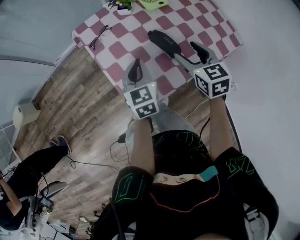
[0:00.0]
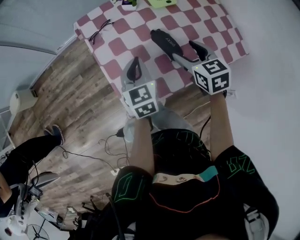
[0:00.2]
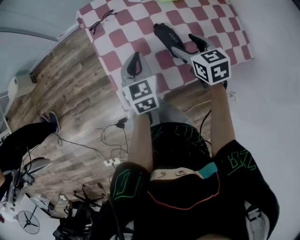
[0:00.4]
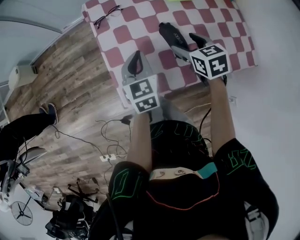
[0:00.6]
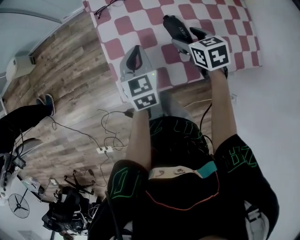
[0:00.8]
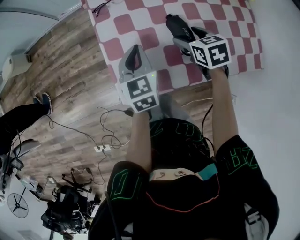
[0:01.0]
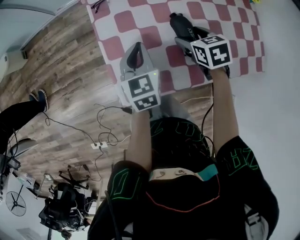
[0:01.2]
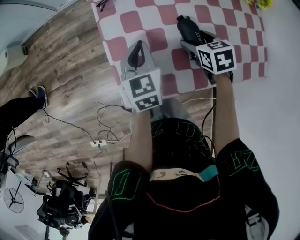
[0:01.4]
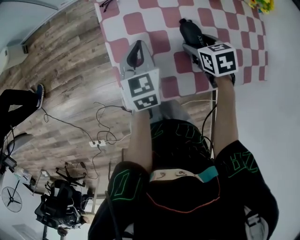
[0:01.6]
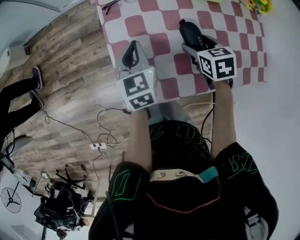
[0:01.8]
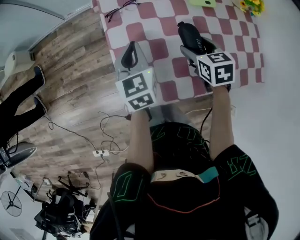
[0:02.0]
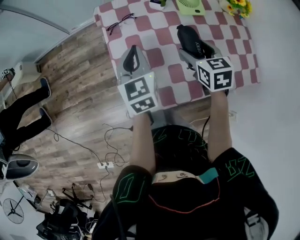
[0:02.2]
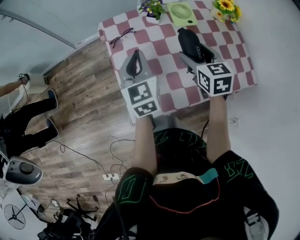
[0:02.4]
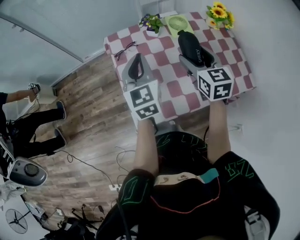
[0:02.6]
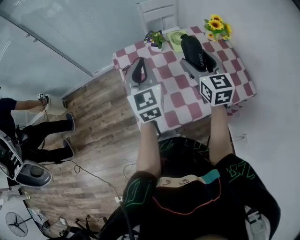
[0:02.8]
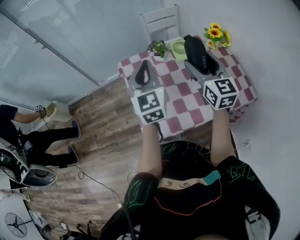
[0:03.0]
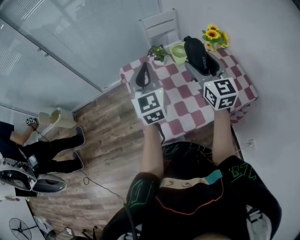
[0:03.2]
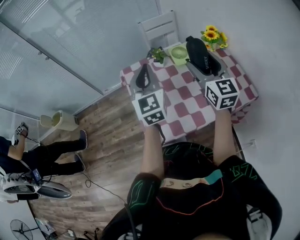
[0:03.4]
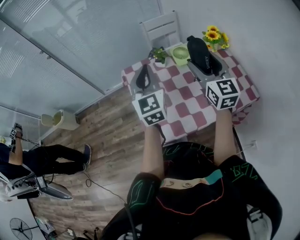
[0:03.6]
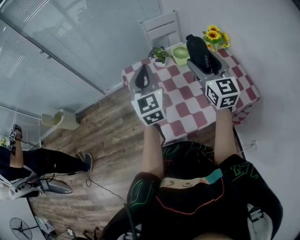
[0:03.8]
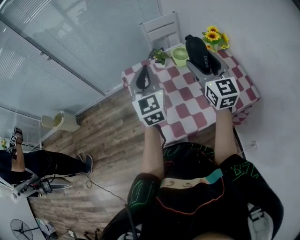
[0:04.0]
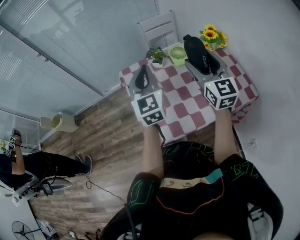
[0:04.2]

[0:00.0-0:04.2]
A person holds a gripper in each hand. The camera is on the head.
0:00.0 to 0:01.4: The right gripper shifts roughly 20 cm downward and forward, and turns by some 30 degrees. Meanwhile the left gripper heads downward, covering about 5 cm.
0:01.4 to 0:02.8: The grippers both shift upward by roughly 25 cm. The right gripper tilts its fingers roughly 50 degrees upward; the left gripper changes its angle by roughly 30 degrees.
0:02.8 to 0:04.2: The right gripper shifts about 5 cm upward.

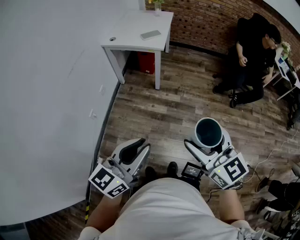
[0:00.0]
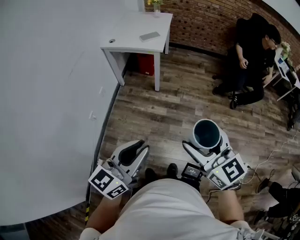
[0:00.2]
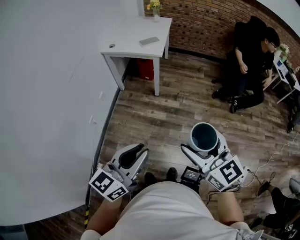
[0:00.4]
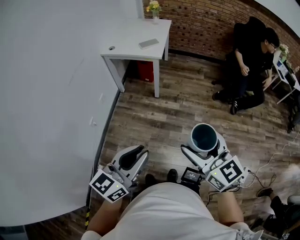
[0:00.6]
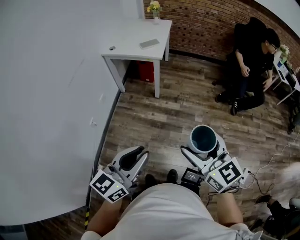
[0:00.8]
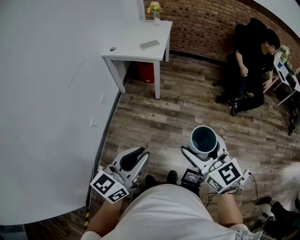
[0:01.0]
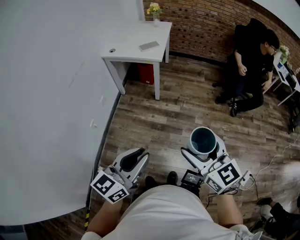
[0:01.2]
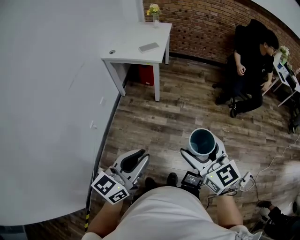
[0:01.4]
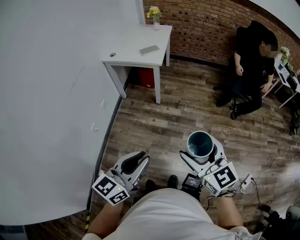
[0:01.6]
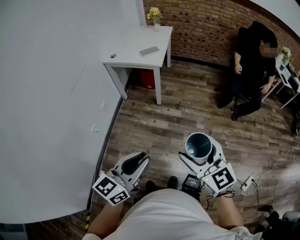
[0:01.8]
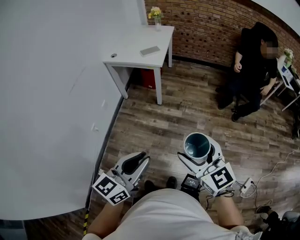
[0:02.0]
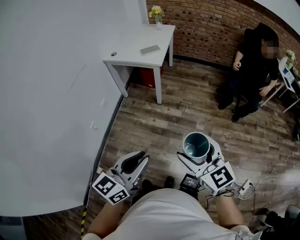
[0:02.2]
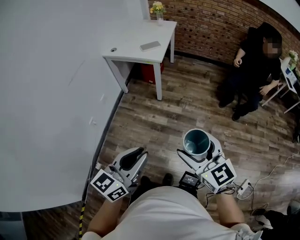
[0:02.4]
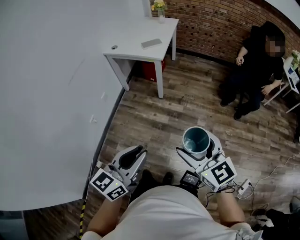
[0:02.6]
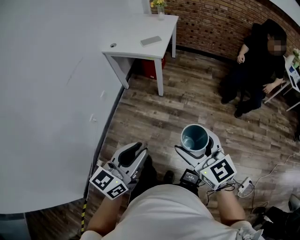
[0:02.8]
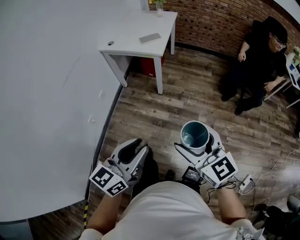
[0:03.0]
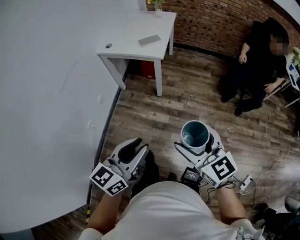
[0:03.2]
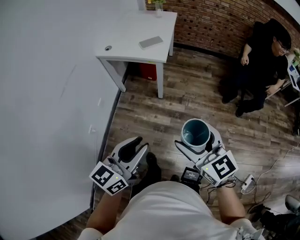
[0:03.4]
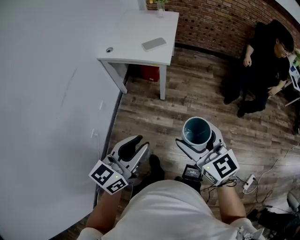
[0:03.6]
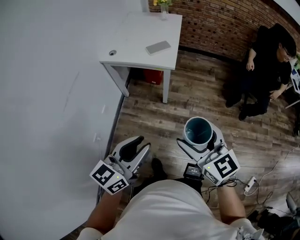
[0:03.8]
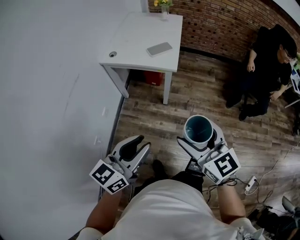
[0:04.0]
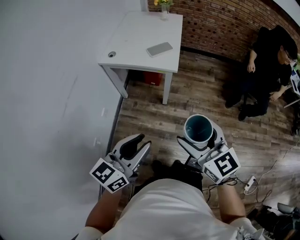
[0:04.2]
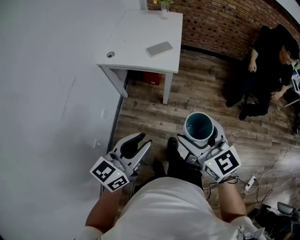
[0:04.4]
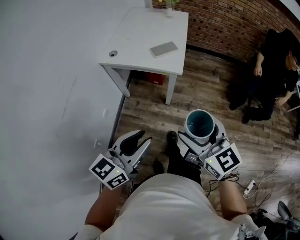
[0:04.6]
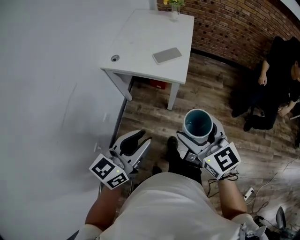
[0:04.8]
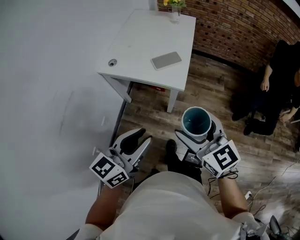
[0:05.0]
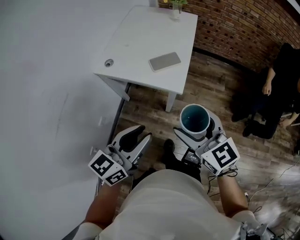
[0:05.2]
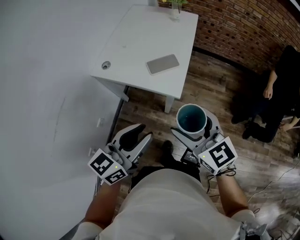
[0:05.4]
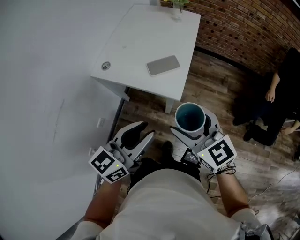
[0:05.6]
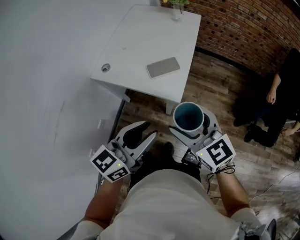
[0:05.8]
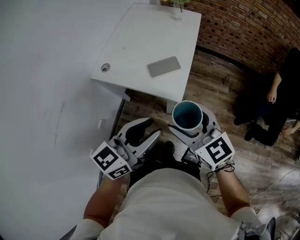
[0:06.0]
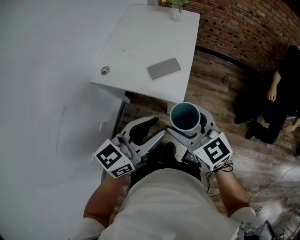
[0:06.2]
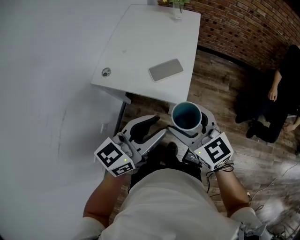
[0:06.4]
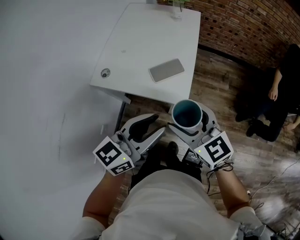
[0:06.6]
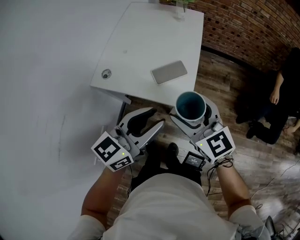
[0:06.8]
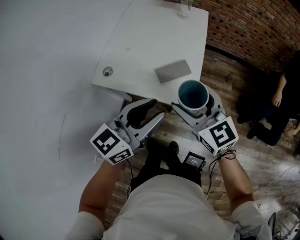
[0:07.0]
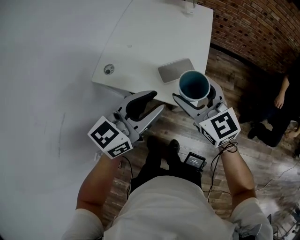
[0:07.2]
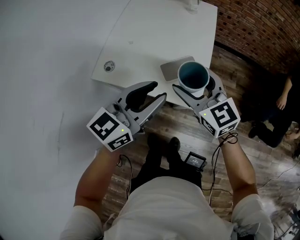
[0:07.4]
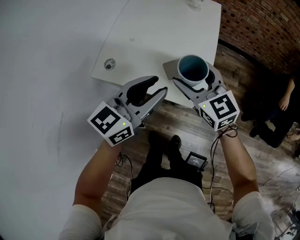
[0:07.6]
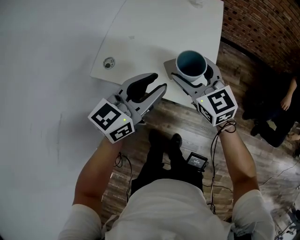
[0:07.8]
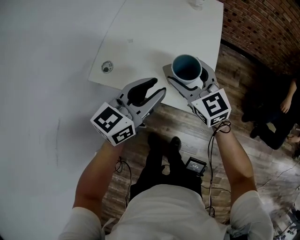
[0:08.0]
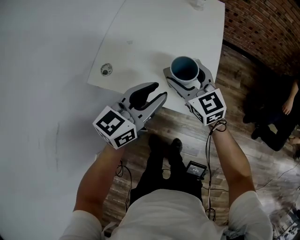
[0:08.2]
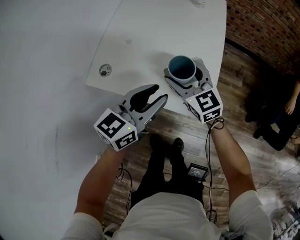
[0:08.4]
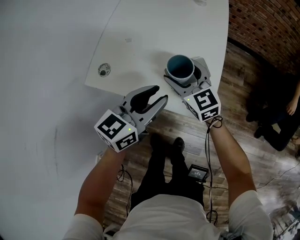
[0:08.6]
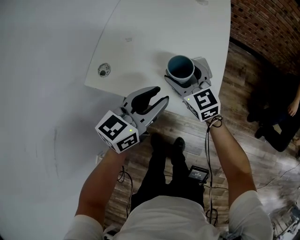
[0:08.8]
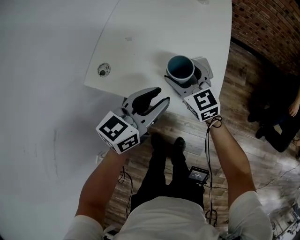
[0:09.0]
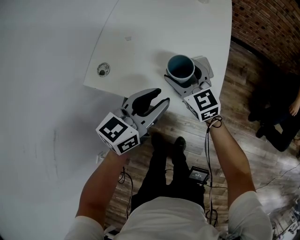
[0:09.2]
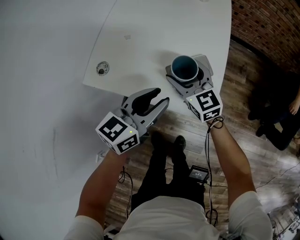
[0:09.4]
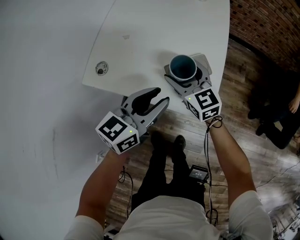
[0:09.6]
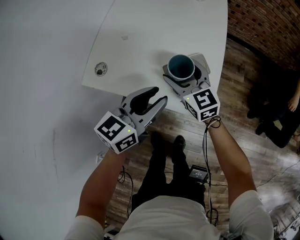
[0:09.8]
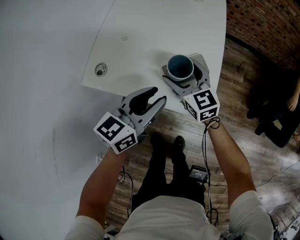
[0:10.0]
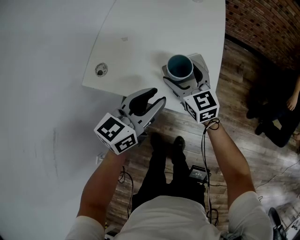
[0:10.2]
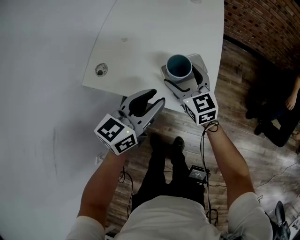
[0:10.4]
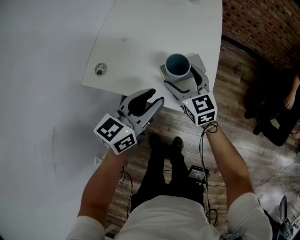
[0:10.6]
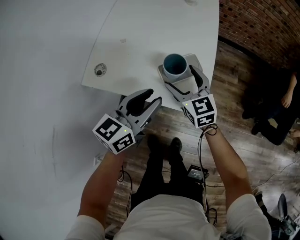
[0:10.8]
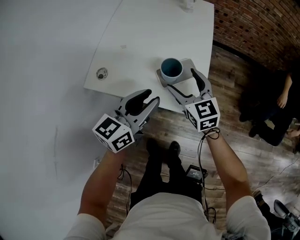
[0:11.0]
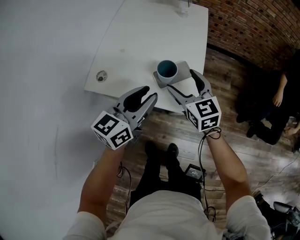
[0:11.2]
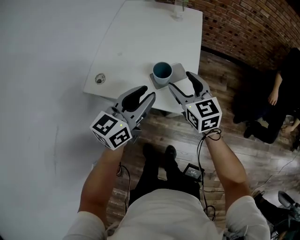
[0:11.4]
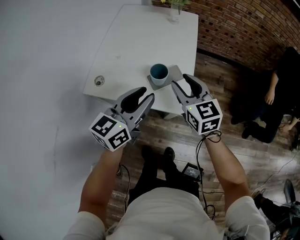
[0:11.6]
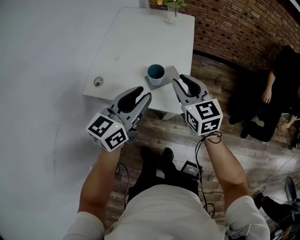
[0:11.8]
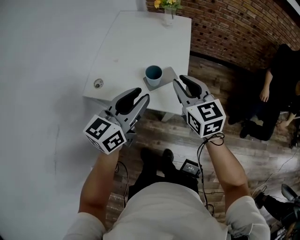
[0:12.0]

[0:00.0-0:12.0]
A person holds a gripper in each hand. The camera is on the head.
0:00.0 to 0:01.6: The grippers move only a little.
0:01.6 to 0:03.0: Both grippers move forward, about 10 cm.
0:03.0 to 0:04.4: The two grippers go roughly 25 cm forward and to the left.
0:04.4 to 0:06.0: Both grippers move forward, some 30 cm.
0:06.0 to 0:07.6: Both grippers move forward and to the left, about 20 cm.
0:07.6 to 0:09.0: The left gripper shifts some 10 cm downward. Meanwhile the right gripper travels downward and forward by some 15 cm.
0:09.0 to 0:10.4: The grippers stay close to where they were, moving slightly.
0:10.4 to 0:12.0: The left gripper moves upward, approximately 15 cm; the right gripper goes approximately 25 cm upward, to the right and backward, and closes up.

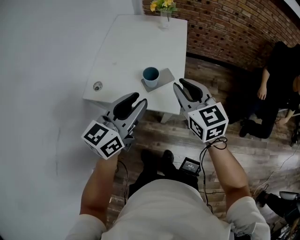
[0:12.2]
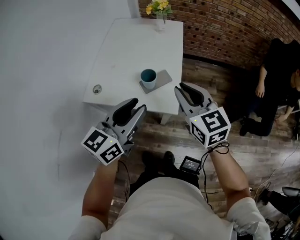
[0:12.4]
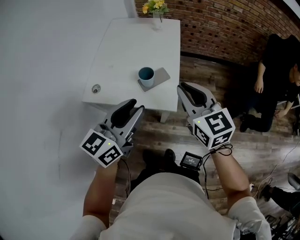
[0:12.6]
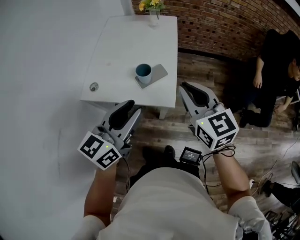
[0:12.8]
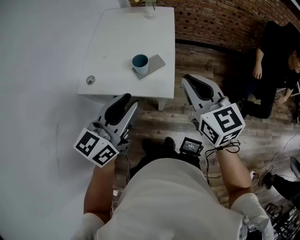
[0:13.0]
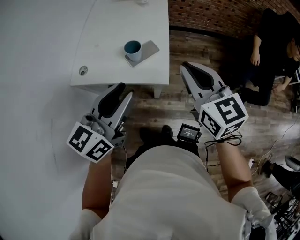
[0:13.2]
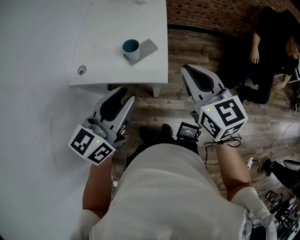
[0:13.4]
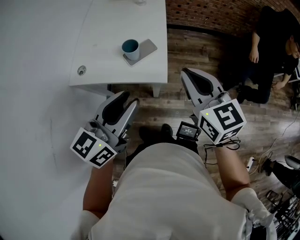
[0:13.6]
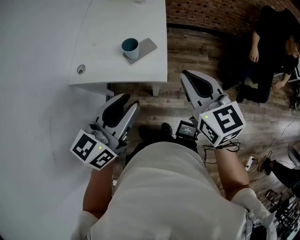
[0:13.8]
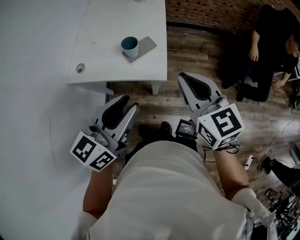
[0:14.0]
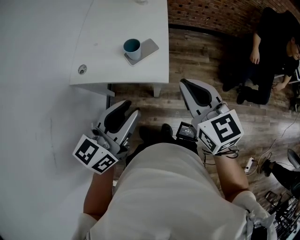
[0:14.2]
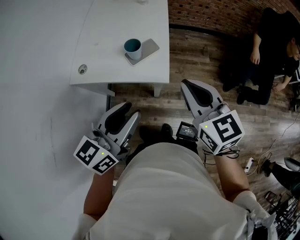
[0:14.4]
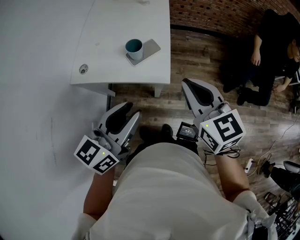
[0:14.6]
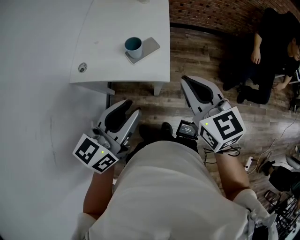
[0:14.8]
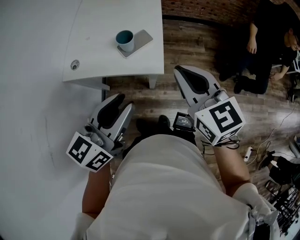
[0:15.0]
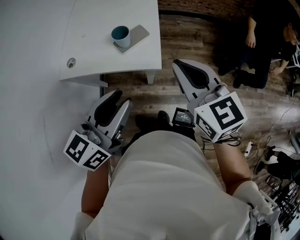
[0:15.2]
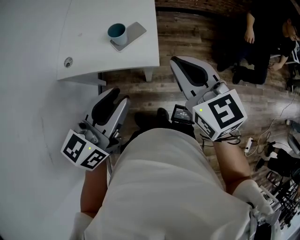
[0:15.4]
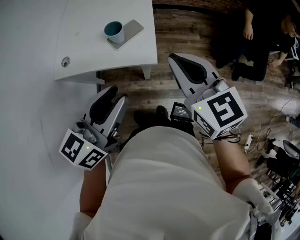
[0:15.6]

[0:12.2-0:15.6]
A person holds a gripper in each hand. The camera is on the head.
0:12.2 to 0:13.8: The left gripper goes about 10 cm backward; the right gripper goes roughly 10 cm backward and to the right.
0:13.8 to 0:15.6: There are only small adjustments of the grippers.

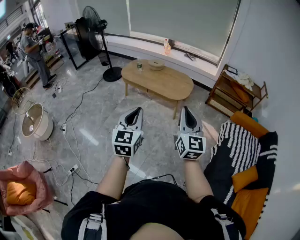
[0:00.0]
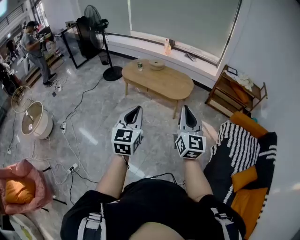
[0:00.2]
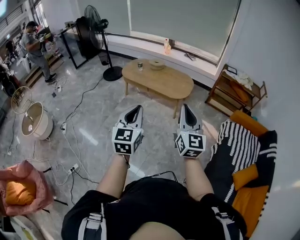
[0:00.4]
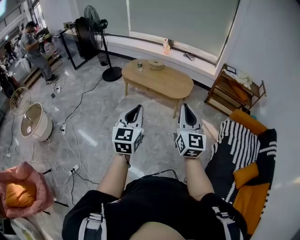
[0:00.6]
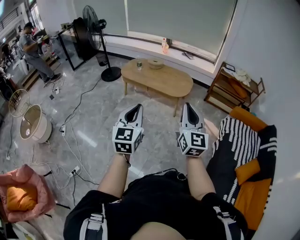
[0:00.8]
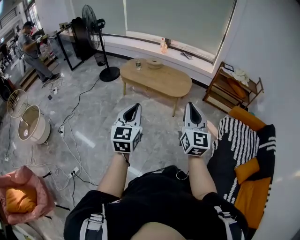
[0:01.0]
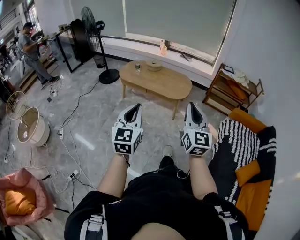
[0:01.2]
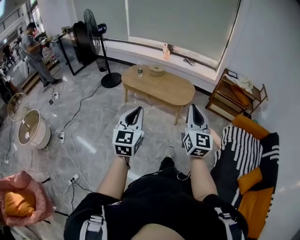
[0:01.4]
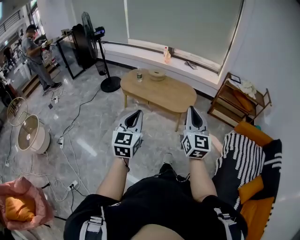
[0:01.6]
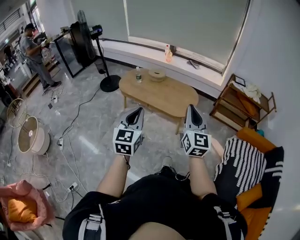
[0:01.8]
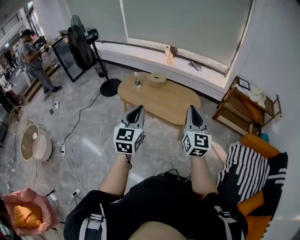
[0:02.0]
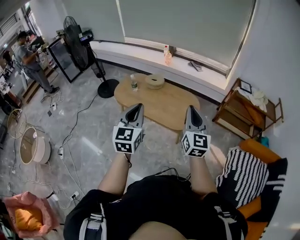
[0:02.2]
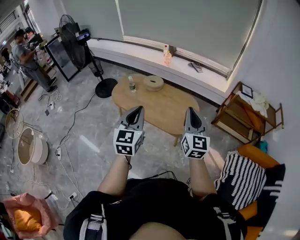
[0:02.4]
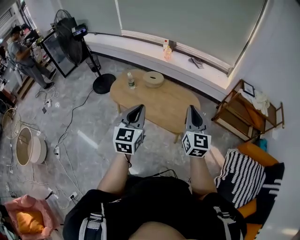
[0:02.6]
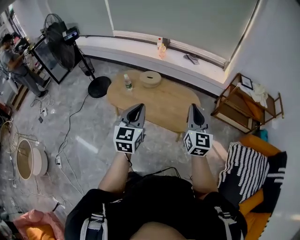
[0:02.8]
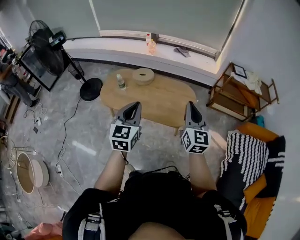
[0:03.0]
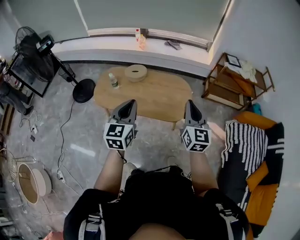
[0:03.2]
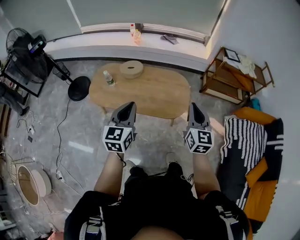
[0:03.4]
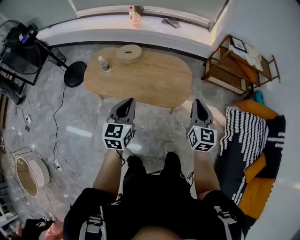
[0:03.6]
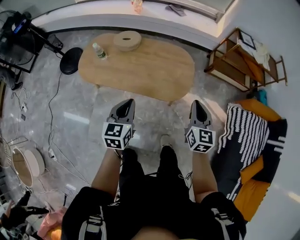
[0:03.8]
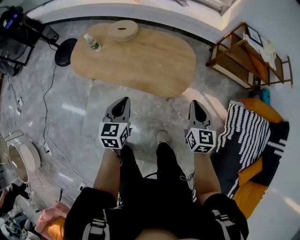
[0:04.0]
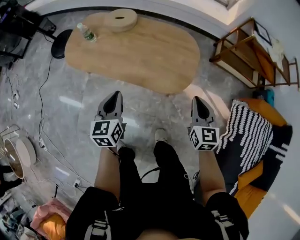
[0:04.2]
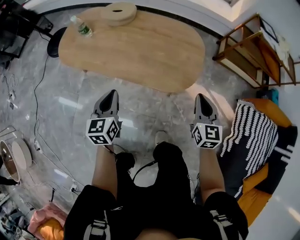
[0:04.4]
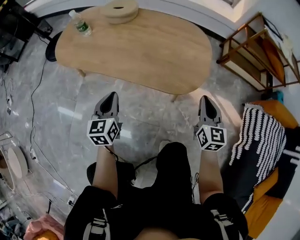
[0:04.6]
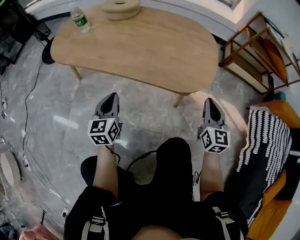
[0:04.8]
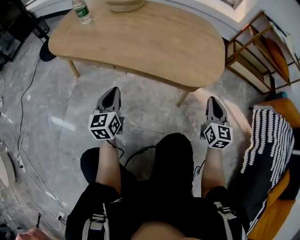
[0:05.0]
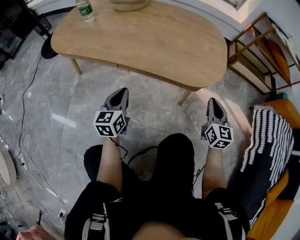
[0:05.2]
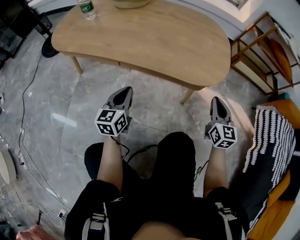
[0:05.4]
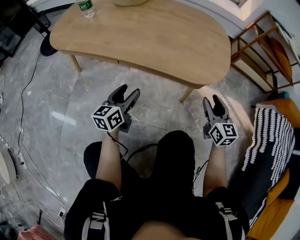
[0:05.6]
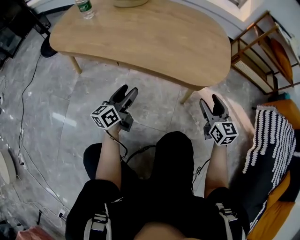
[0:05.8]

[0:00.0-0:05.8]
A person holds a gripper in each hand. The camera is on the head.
0:00.0 to 0:01.4: The right gripper travels to the left by some 5 cm. The left gripper travels to the left by roughly 10 cm.
0:01.4 to 0:02.8: The two grippers travel together, forward, approximately 60 cm.
0:02.8 to 0:04.4: Both grippers move downward, about 50 cm. The left gripper turns by some 20 degrees. The right gripper turns by roughly 20 degrees.
0:04.4 to 0:05.8: Both grippers move downward, some 30 cm. The right gripper opens up. The left gripper rotates about 40 degrees, and opens.
